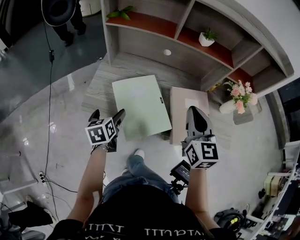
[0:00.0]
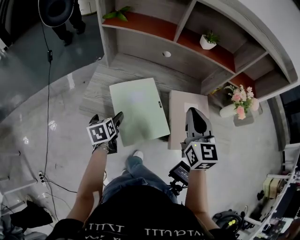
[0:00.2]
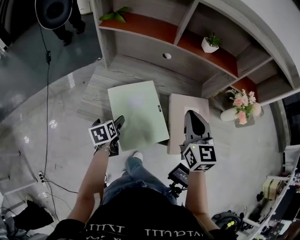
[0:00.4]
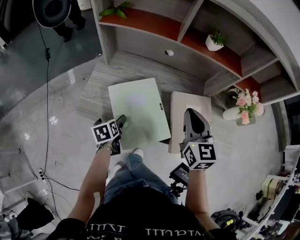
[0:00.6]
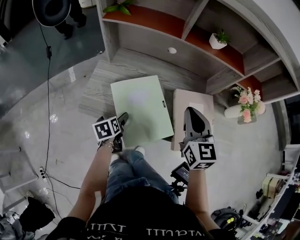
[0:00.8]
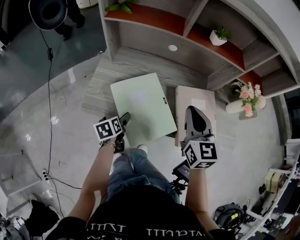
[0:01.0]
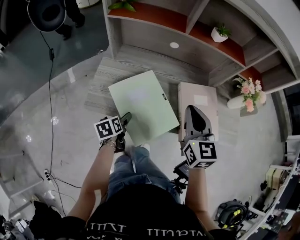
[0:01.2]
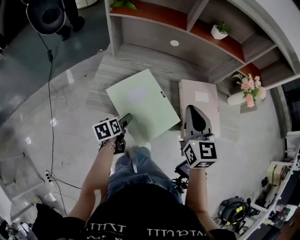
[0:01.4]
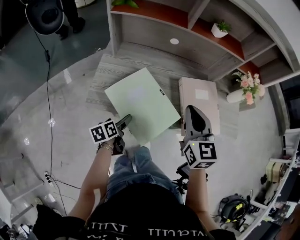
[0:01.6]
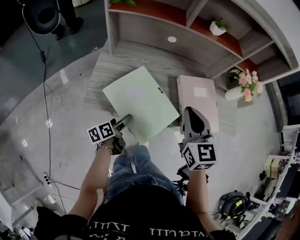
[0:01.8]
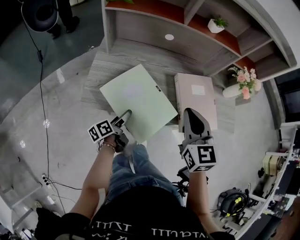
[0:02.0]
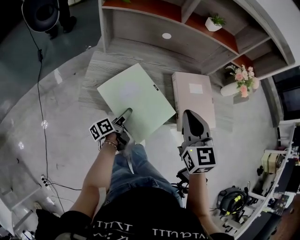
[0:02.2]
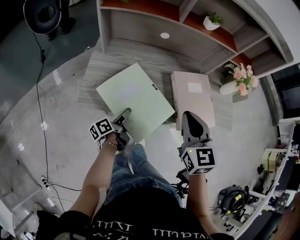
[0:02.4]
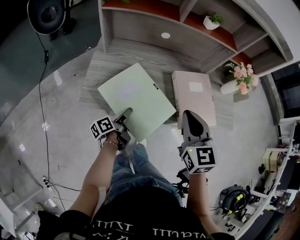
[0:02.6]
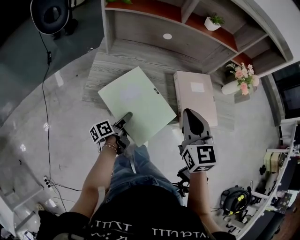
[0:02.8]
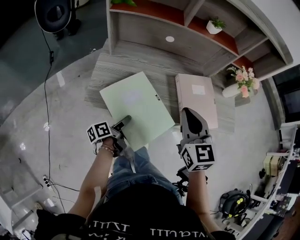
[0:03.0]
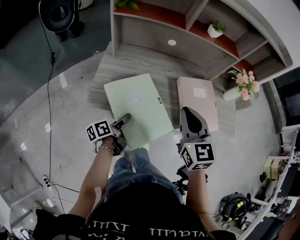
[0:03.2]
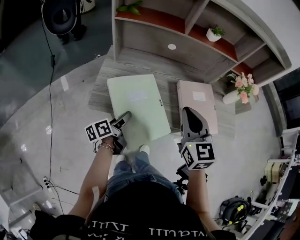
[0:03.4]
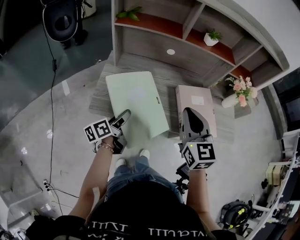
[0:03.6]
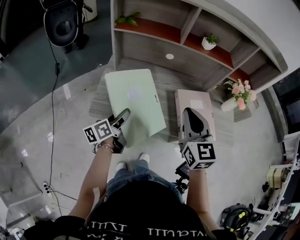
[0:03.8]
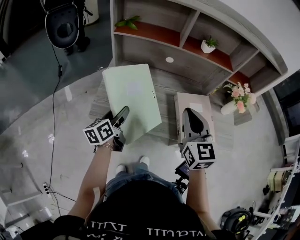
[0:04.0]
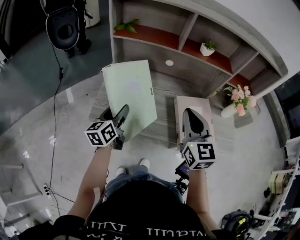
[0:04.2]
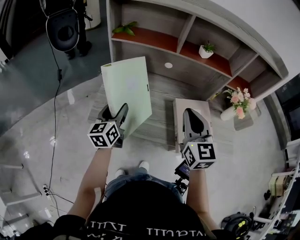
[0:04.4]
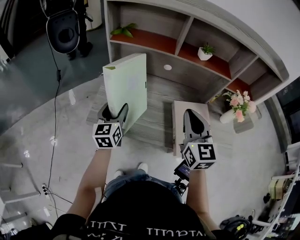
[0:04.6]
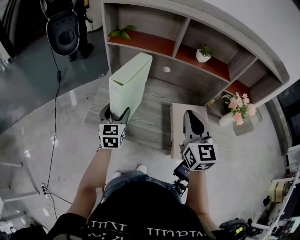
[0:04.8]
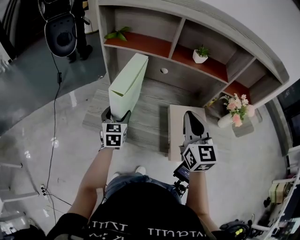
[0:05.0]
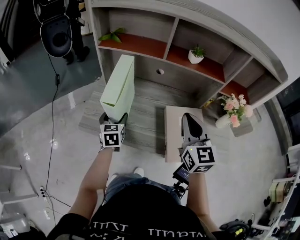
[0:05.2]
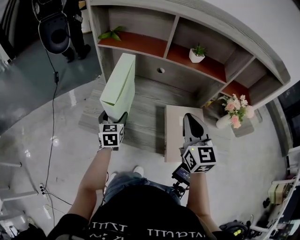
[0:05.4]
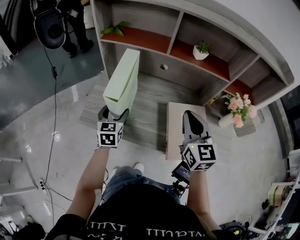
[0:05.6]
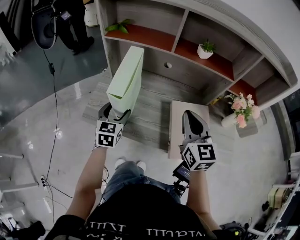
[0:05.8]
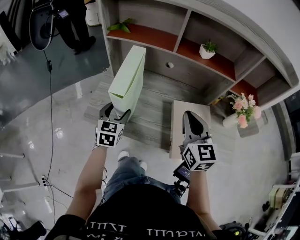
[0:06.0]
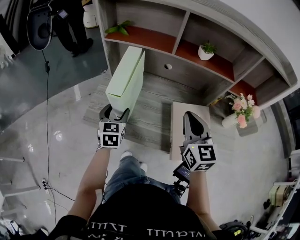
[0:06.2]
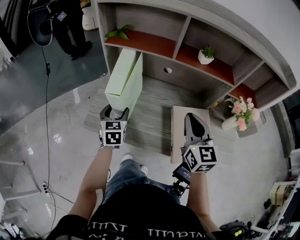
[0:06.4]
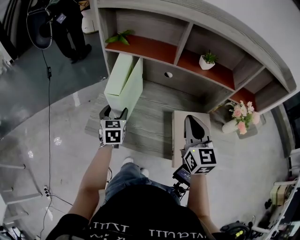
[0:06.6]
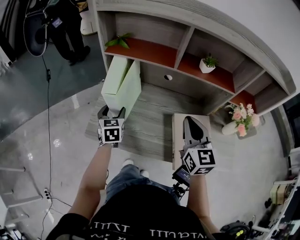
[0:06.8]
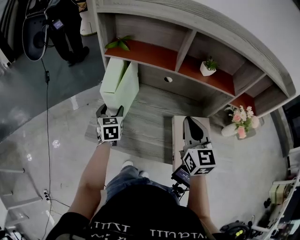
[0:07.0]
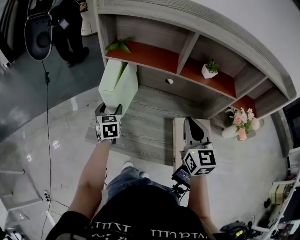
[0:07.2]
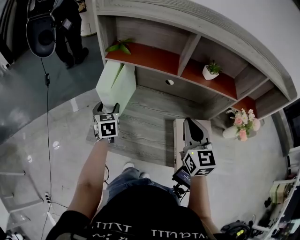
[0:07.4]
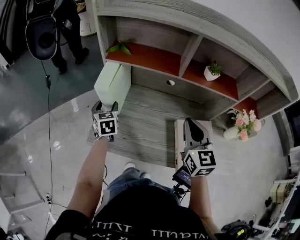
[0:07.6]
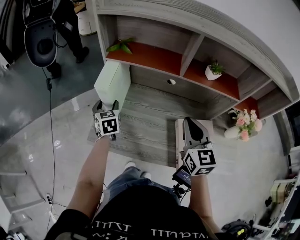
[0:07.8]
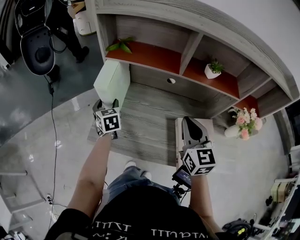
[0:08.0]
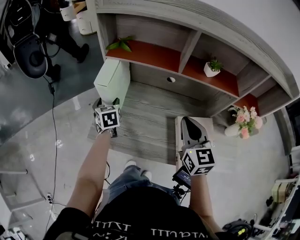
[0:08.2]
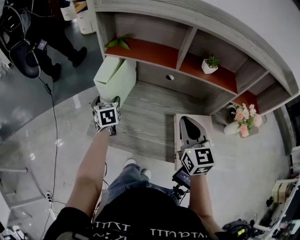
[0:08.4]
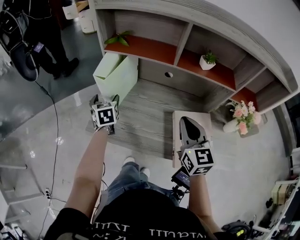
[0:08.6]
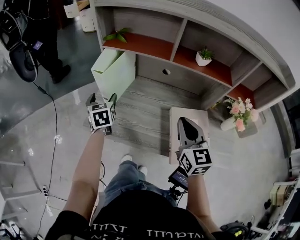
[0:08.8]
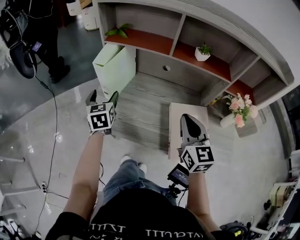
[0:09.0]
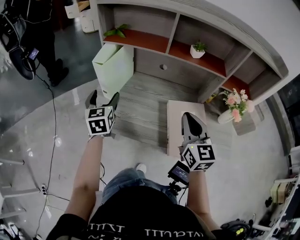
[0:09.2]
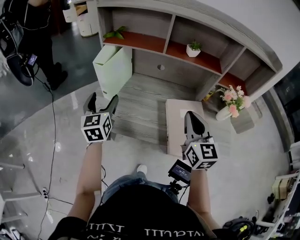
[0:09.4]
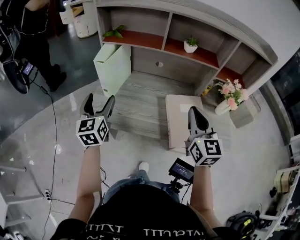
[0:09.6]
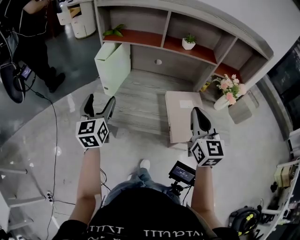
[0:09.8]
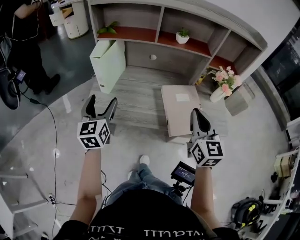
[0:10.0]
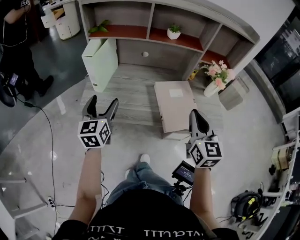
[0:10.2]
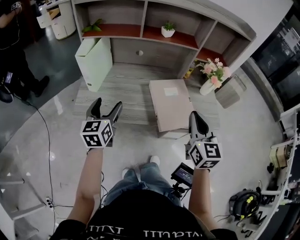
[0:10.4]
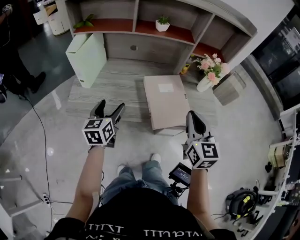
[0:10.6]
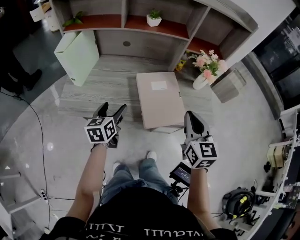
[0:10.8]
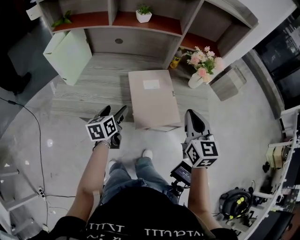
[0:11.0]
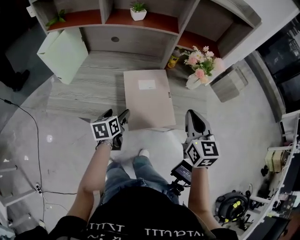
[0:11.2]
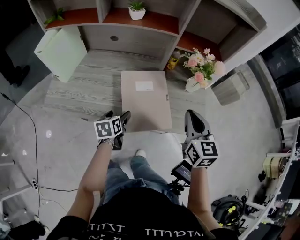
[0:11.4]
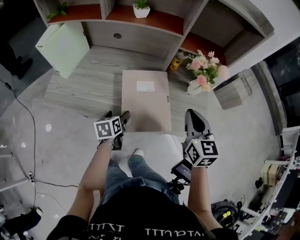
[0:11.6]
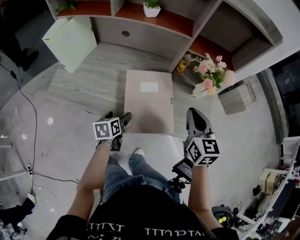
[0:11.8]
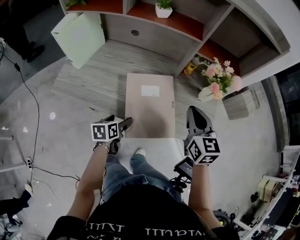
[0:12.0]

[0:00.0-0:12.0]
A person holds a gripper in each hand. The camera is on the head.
0:00.0 to 0:01.6: The right gripper heads to the left, covering approximately 5 cm; the left gripper heads downward, covering some 10 cm, and rotates some 30 degrees.
0:01.6 to 0:03.0: The left gripper turns by roughly 30 degrees, and closes up.
0:03.0 to 0:04.4: The right gripper is displaced forward and upward by some 10 cm. Meanwhile the left gripper goes about 20 cm upward and forward, and rotates around the line of its fingers by approximately 50 degrees, clockwise from behind.
0:04.4 to 0:06.0: The left gripper goes about 5 cm to the right, and changes its angle by about 30 degrees. The right gripper moves roughly 5 cm.
0:06.0 to 0:07.6: The right gripper is displaced forward by some 10 cm; the left gripper shifts about 20 cm forward and to the left.
0:07.6 to 0:09.0: The right gripper moves backward, roughly 10 cm, while the left gripper shifts some 10 cm backward and upward.
0:09.0 to 0:10.4: Both grippers move backward and to the right, some 20 cm. The left gripper rotates about 30 degrees.
0:10.4 to 0:12.0: The right gripper is displaced forward, to the right and downward by some 20 cm. The left gripper moves downward and to the right, some 30 cm, and turns by roughly 40 degrees.

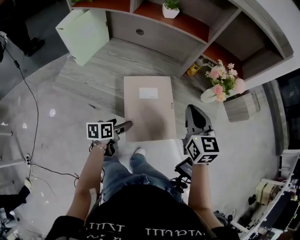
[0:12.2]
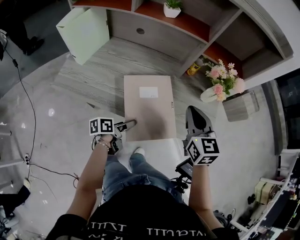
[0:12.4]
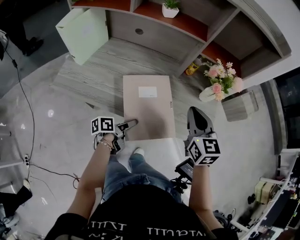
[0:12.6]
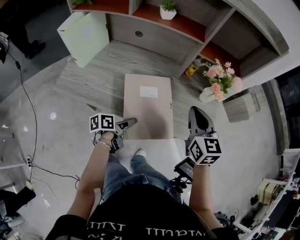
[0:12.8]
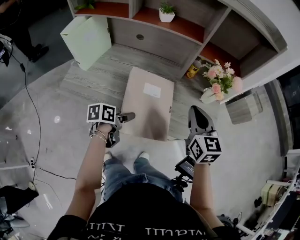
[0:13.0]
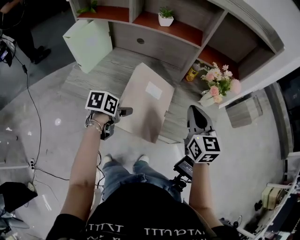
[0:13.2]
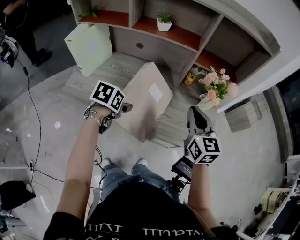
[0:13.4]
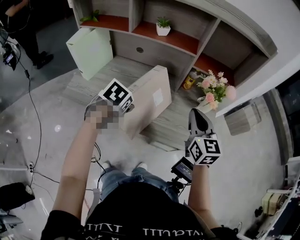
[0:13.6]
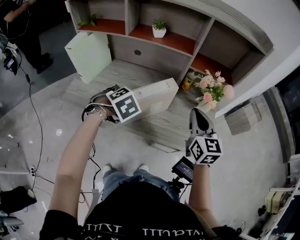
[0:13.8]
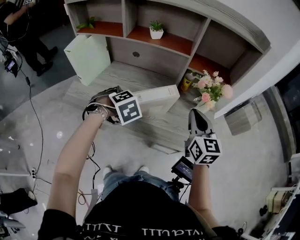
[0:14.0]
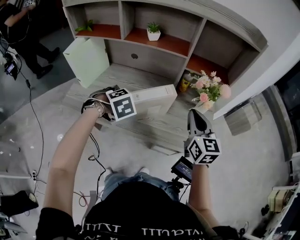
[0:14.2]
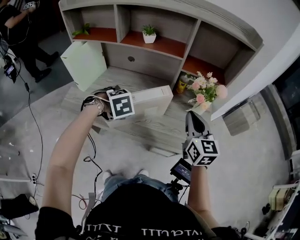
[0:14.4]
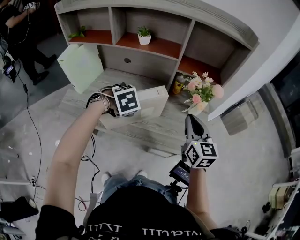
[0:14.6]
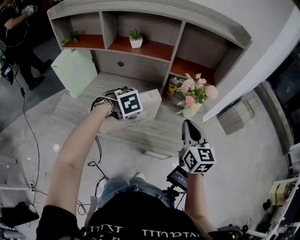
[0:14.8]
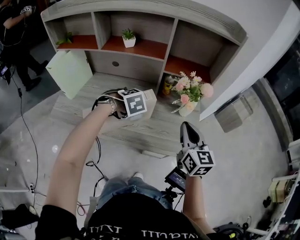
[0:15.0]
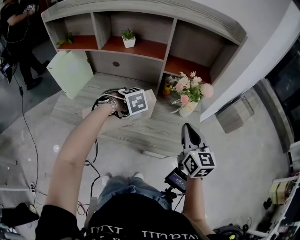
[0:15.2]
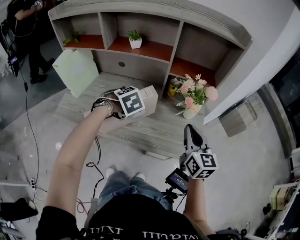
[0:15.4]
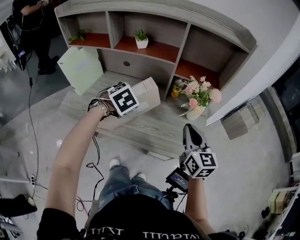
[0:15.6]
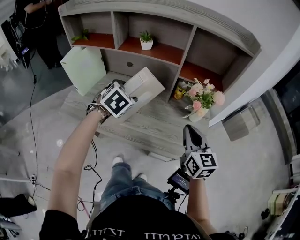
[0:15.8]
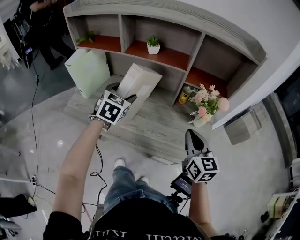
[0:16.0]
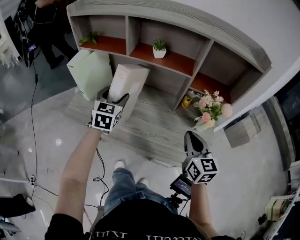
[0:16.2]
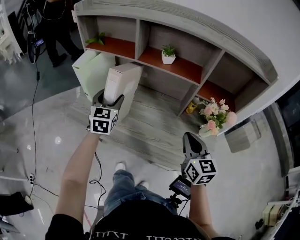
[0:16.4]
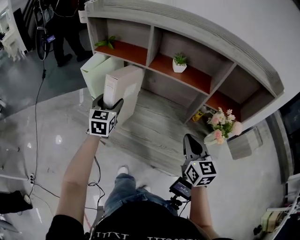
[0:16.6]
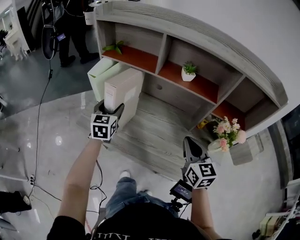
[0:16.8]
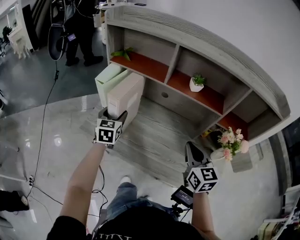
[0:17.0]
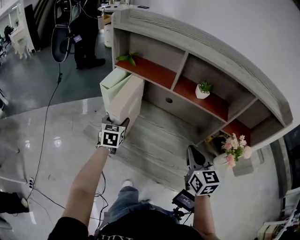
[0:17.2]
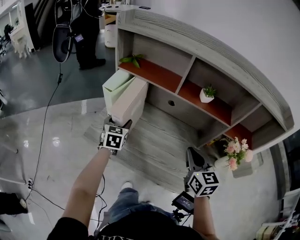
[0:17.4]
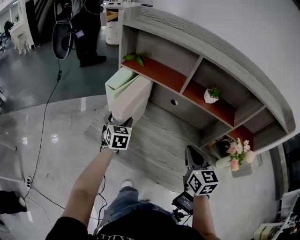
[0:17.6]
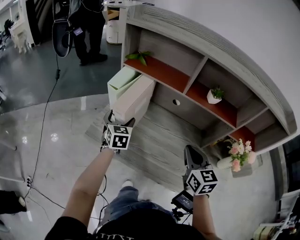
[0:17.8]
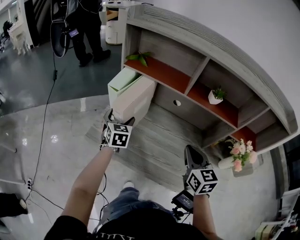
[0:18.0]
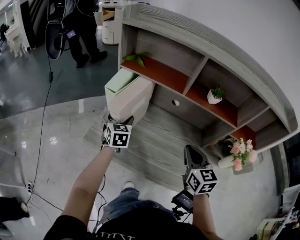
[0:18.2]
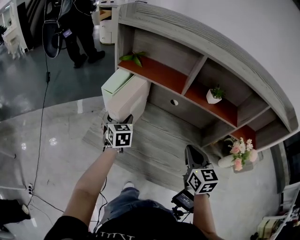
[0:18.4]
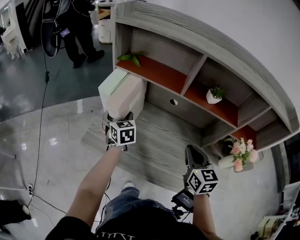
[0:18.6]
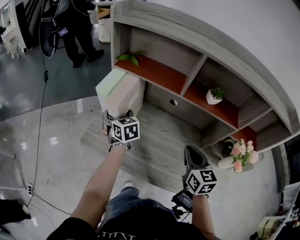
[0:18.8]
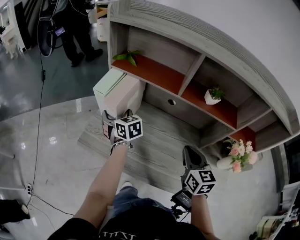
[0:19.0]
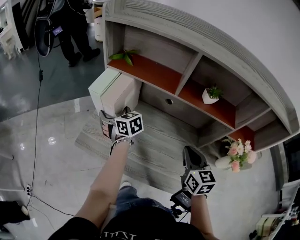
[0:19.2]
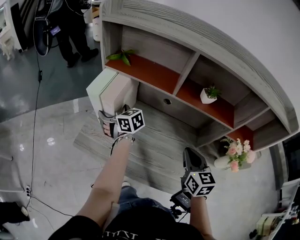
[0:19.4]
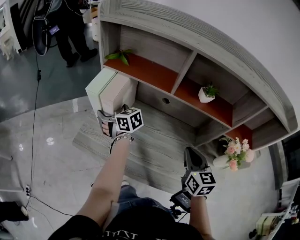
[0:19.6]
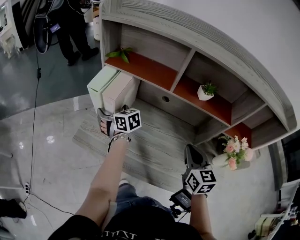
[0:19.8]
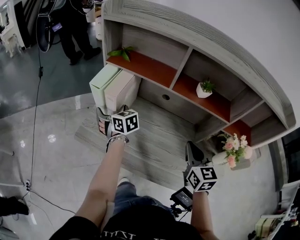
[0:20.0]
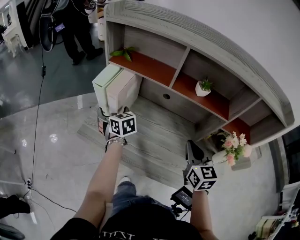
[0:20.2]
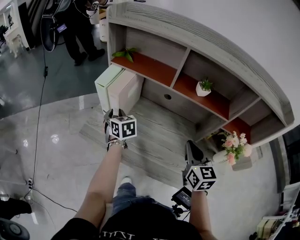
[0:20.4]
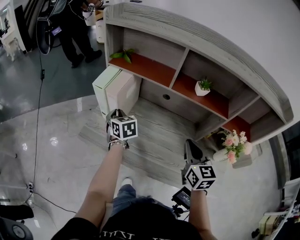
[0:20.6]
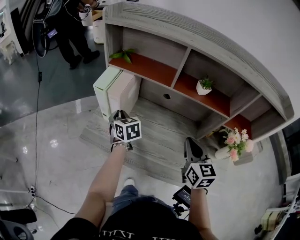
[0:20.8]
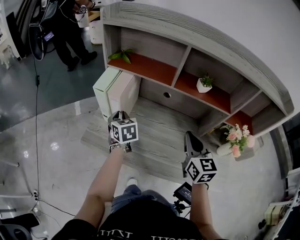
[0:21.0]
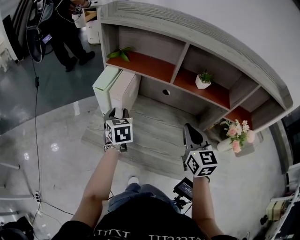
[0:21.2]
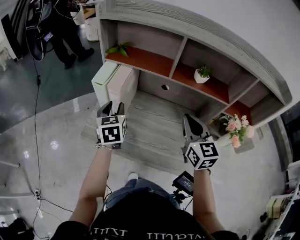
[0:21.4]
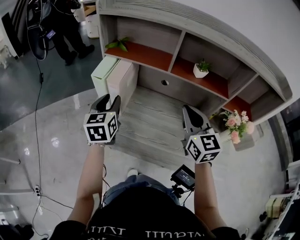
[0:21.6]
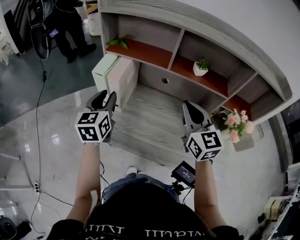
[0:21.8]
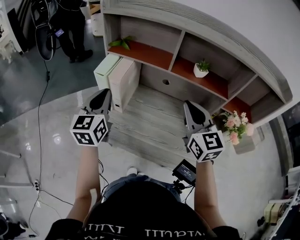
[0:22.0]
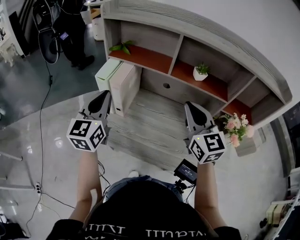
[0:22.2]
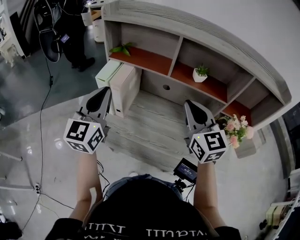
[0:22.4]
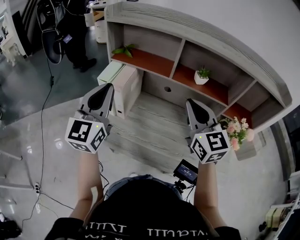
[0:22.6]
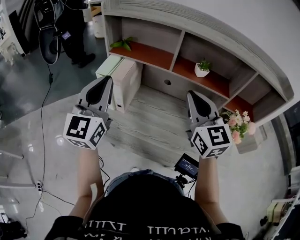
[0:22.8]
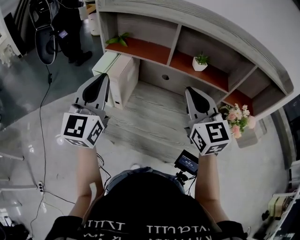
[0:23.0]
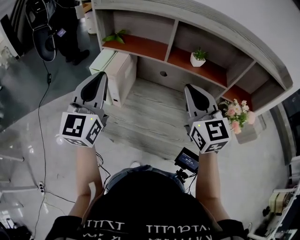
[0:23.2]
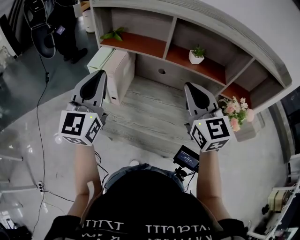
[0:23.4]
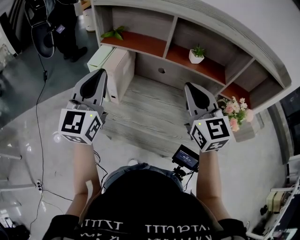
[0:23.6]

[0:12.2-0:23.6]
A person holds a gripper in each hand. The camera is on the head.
0:12.2 to 0:13.6: The left gripper goes roughly 20 cm upward and forward, and twists approximately 50 degrees clockwise, seen from behind; the right gripper changes place by approximately 5 cm.
0:13.6 to 0:15.0: The right gripper shifts by about 10 cm. Meanwhile the left gripper ends up some 15 cm from where it was, and twists roughly 40 degrees clockwise, seen from behind.
0:15.0 to 0:16.4: The left gripper moves approximately 25 cm, and tips its fingers upward by some 60 degrees; the right gripper moves roughly 10 cm.
0:16.4 to 0:17.8: The left gripper heads to the left, downward and forward, covering approximately 20 cm, while the right gripper shifts approximately 20 cm to the left and forward.
0:17.8 to 0:19.4: The right gripper moves to the right, about 5 cm, while the left gripper goes some 10 cm forward, and changes its angle by approximately 40 degrees.
0:19.4 to 0:20.8: The left gripper goes approximately 5 cm backward, and closes its fingers.
0:20.8 to 0:22.2: The left gripper shifts about 20 cm upward and backward, and tips its fingers upward by some 30 degrees, while the right gripper travels upward by some 10 cm.
0:22.2 to 0:23.6: The left gripper heads upward, covering about 5 cm.
